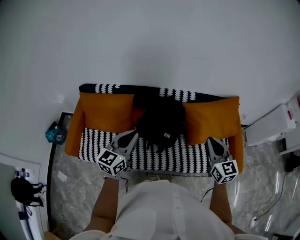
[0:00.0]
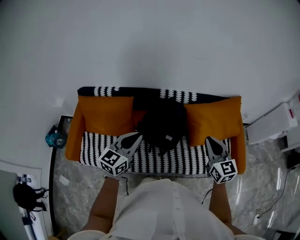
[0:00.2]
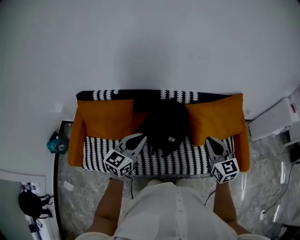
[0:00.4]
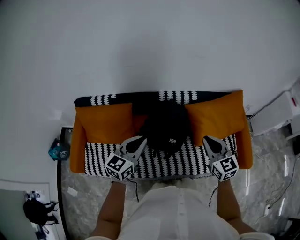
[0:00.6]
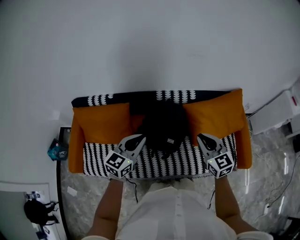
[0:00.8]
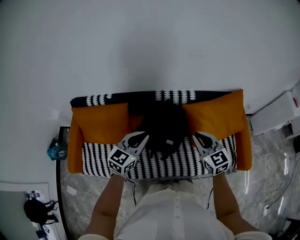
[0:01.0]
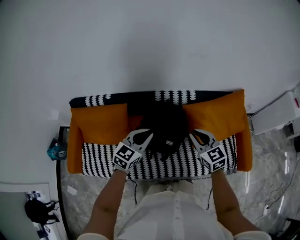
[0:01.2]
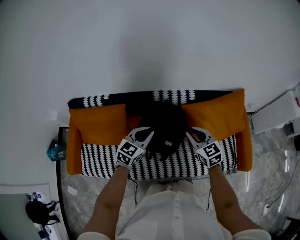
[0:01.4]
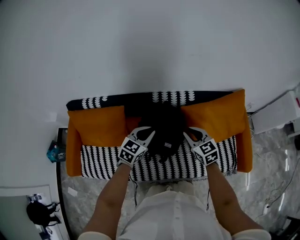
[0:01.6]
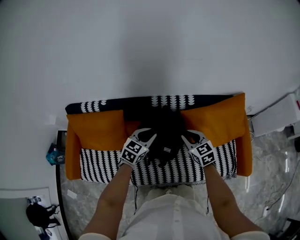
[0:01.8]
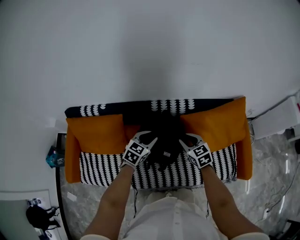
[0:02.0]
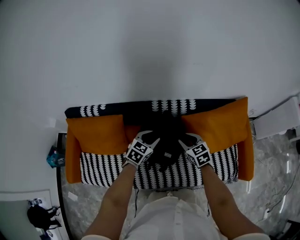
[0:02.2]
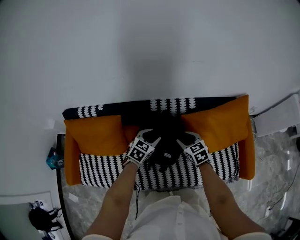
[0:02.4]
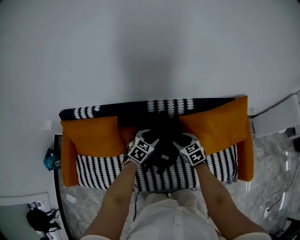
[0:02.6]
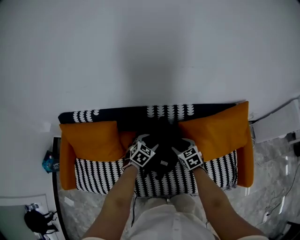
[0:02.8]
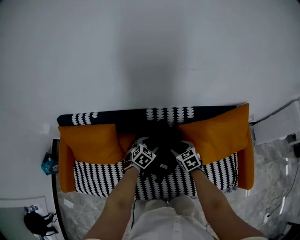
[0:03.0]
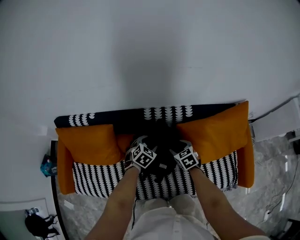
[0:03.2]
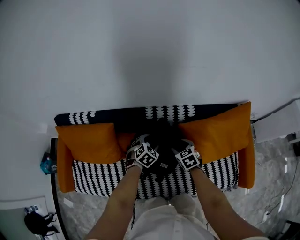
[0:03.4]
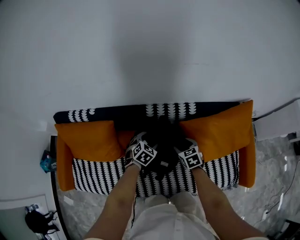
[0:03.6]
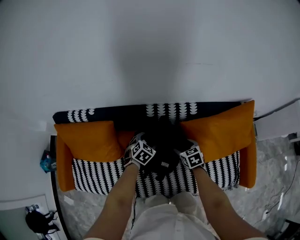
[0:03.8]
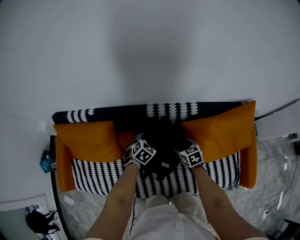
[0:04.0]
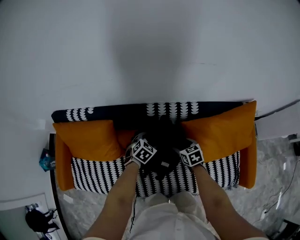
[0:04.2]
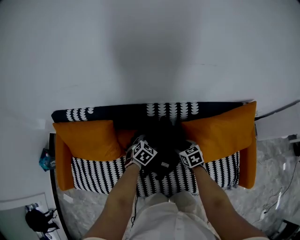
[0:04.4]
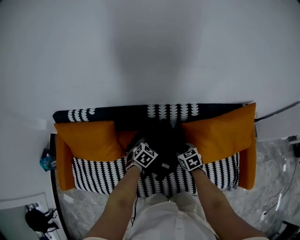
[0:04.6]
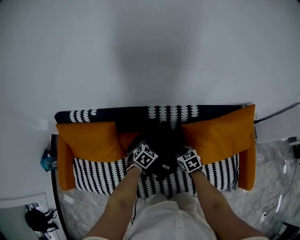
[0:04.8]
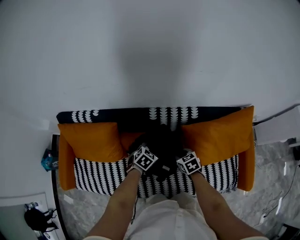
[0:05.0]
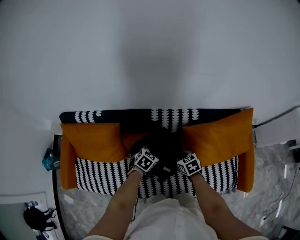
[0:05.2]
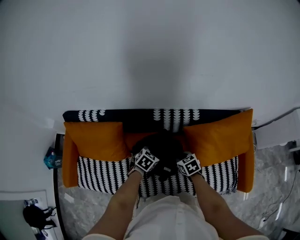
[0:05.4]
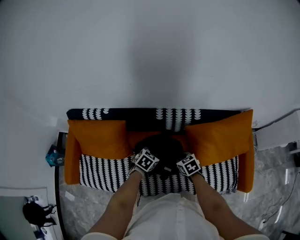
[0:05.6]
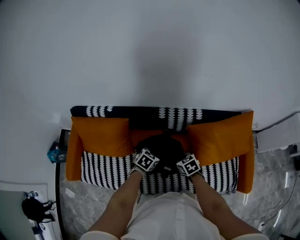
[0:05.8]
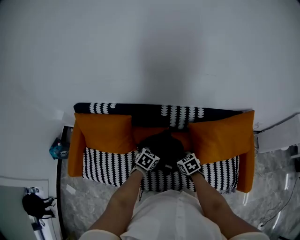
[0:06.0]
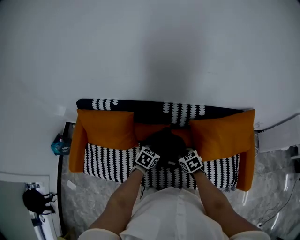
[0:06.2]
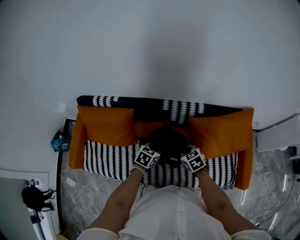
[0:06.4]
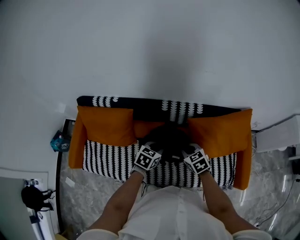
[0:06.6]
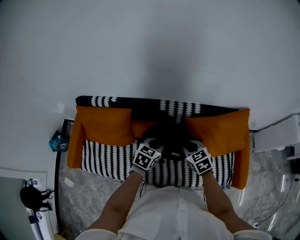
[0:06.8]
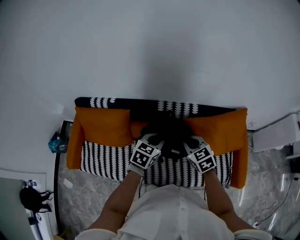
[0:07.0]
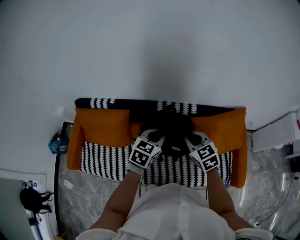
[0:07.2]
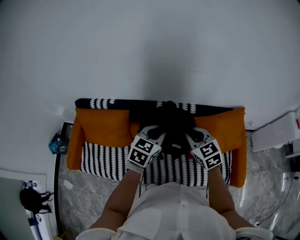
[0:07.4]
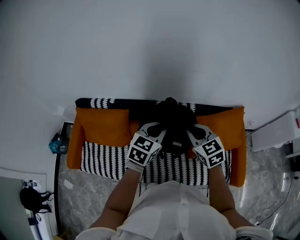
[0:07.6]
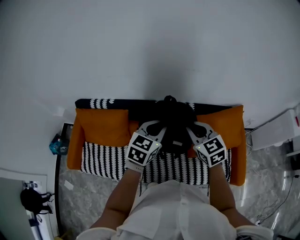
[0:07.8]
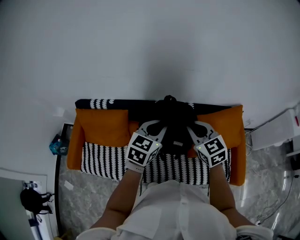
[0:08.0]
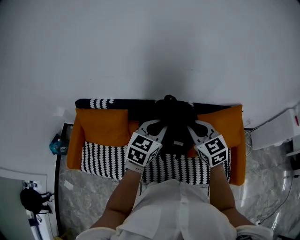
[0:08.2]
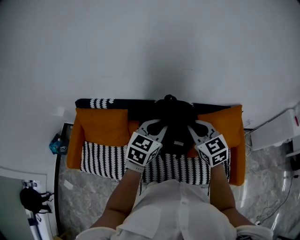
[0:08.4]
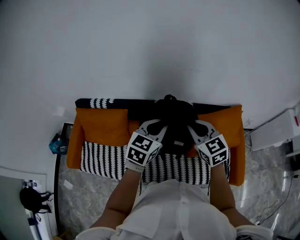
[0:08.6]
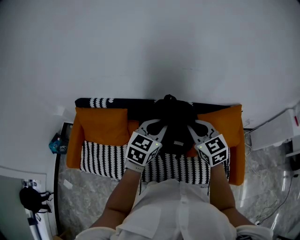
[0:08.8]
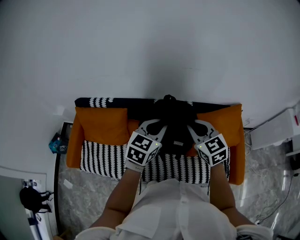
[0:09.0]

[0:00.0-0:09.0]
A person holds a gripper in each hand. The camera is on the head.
0:00.0 to 0:01.6: The left gripper shifts roughly 25 cm forward and downward, and rotates roughly 30 degrees. Meanwhile the right gripper shifts some 25 cm forward, downward and to the left, and rotates some 20 degrees.
0:01.6 to 0:03.0: The grippers both shift downward and forward by roughly 20 cm. The left gripper rotates about 30 degrees, and opens up, while the right gripper opens its fingers.
0:03.0 to 0:04.4: Both grippers move downward, roughly 5 cm.
0:04.4 to 0:06.0: The left gripper travels backward and upward by approximately 15 cm, and closes up. The right gripper is displaced backward, upward and to the left by some 15 cm, and closes its fingers.
0:06.0 to 0:07.6: The grippers both shift upward by some 30 cm. The left gripper rotates approximately 30 degrees; the right gripper swivels some 30 degrees.
0:07.6 to 0:09.0: There are only small adjustments of the grippers.

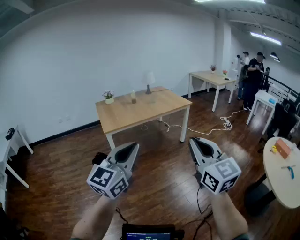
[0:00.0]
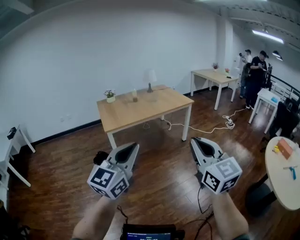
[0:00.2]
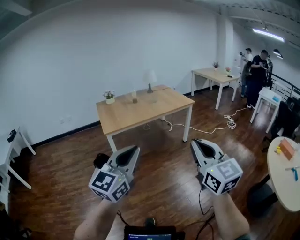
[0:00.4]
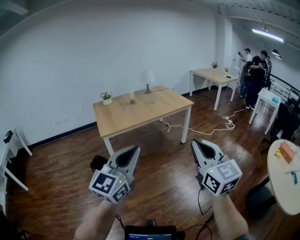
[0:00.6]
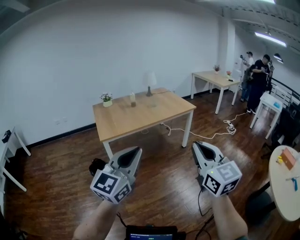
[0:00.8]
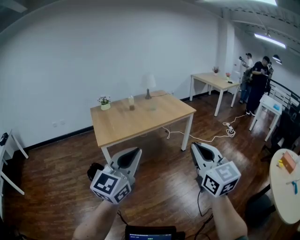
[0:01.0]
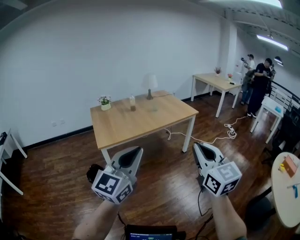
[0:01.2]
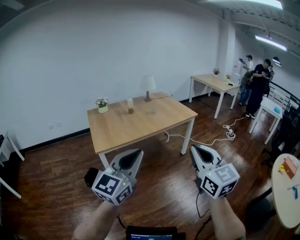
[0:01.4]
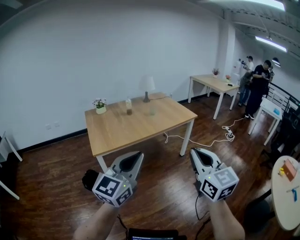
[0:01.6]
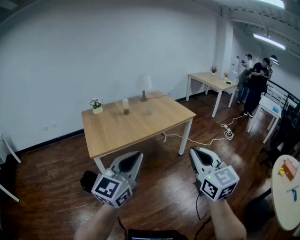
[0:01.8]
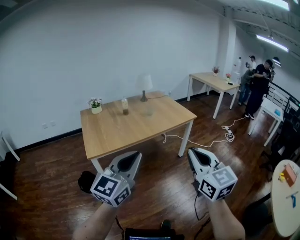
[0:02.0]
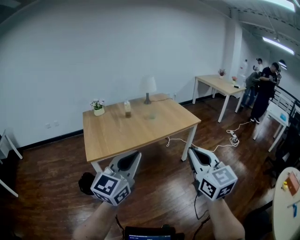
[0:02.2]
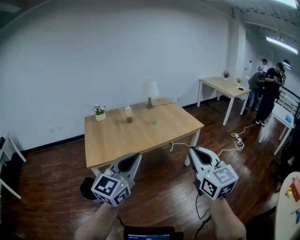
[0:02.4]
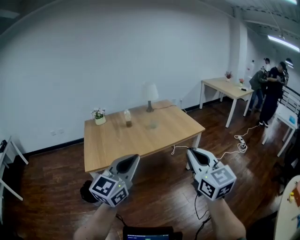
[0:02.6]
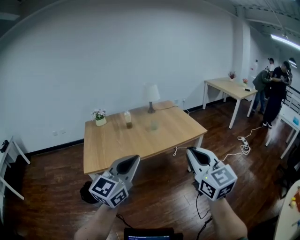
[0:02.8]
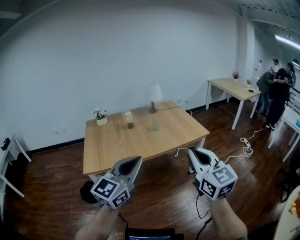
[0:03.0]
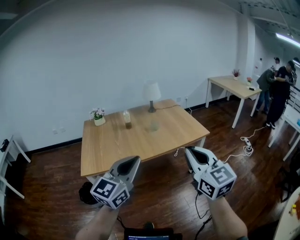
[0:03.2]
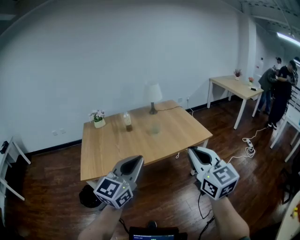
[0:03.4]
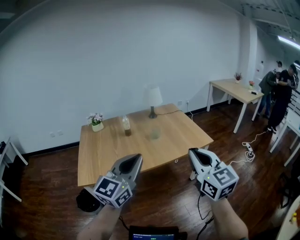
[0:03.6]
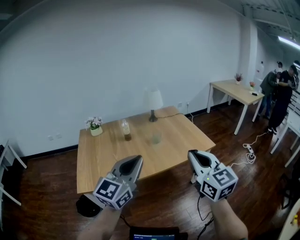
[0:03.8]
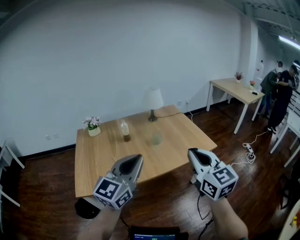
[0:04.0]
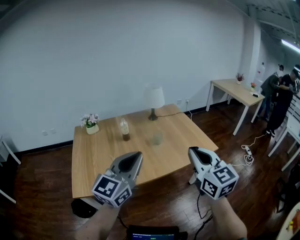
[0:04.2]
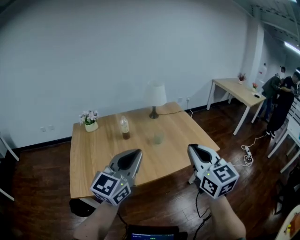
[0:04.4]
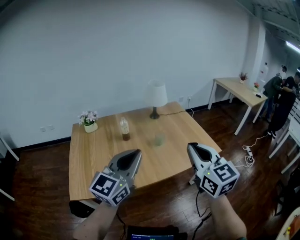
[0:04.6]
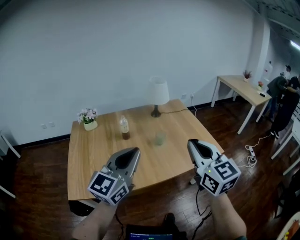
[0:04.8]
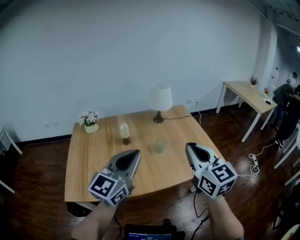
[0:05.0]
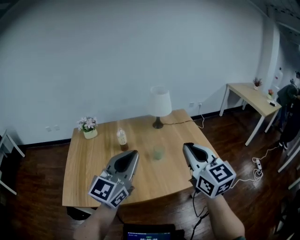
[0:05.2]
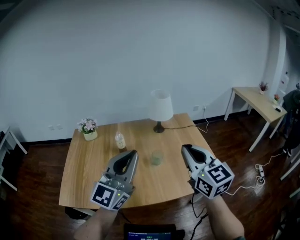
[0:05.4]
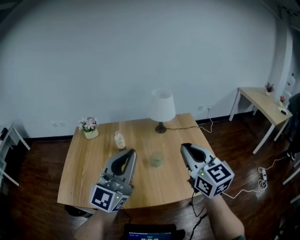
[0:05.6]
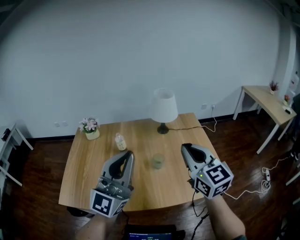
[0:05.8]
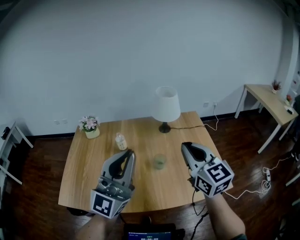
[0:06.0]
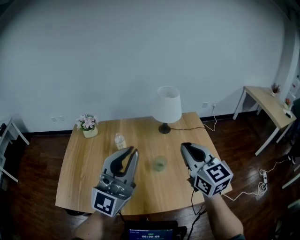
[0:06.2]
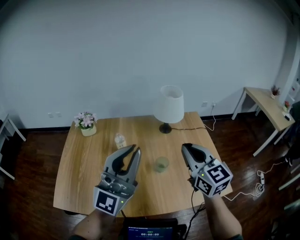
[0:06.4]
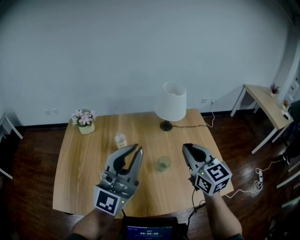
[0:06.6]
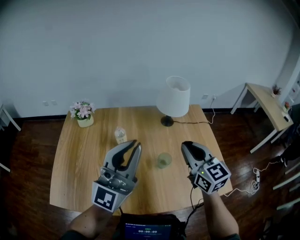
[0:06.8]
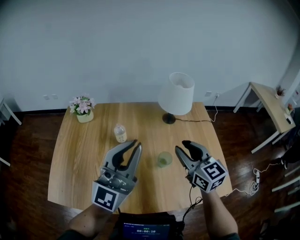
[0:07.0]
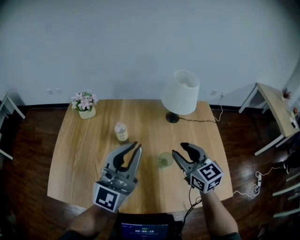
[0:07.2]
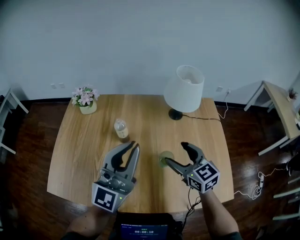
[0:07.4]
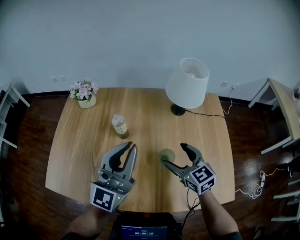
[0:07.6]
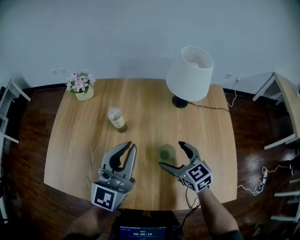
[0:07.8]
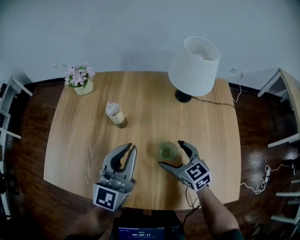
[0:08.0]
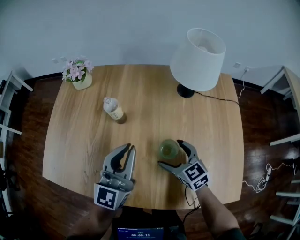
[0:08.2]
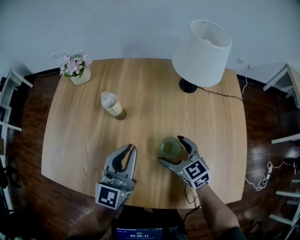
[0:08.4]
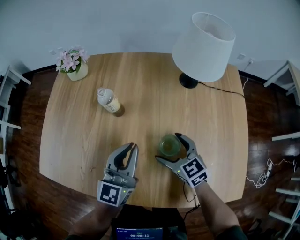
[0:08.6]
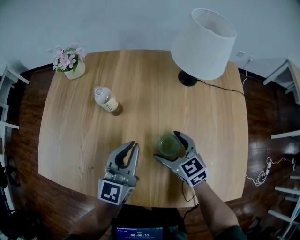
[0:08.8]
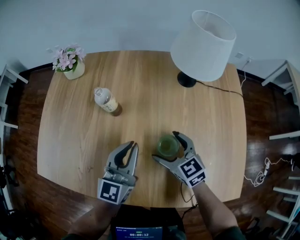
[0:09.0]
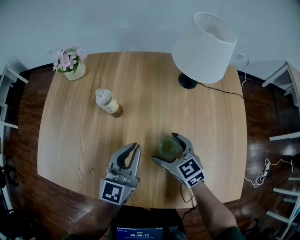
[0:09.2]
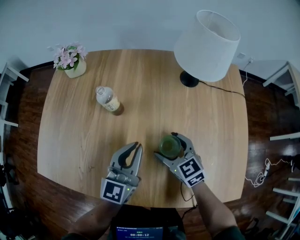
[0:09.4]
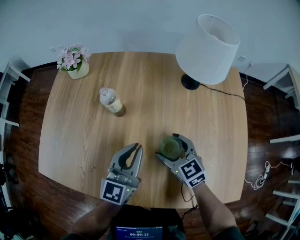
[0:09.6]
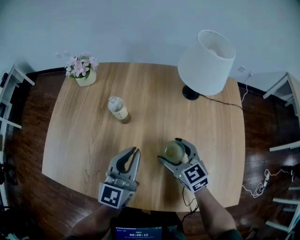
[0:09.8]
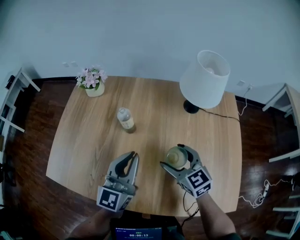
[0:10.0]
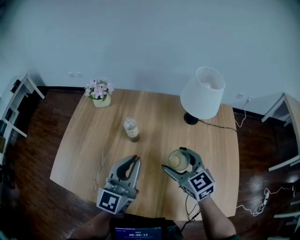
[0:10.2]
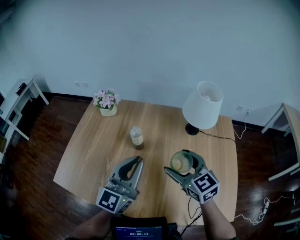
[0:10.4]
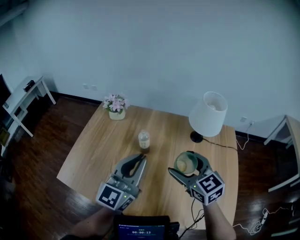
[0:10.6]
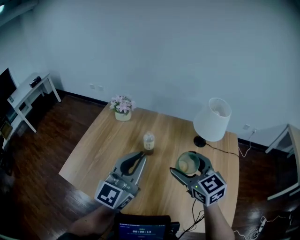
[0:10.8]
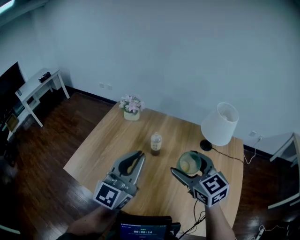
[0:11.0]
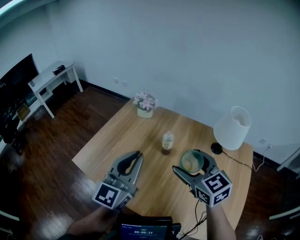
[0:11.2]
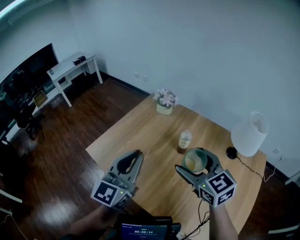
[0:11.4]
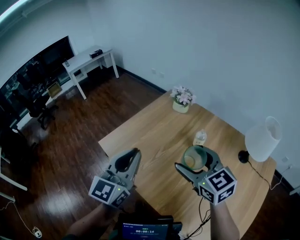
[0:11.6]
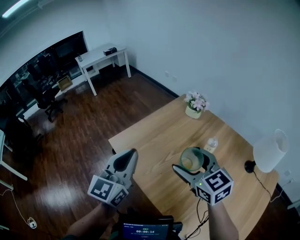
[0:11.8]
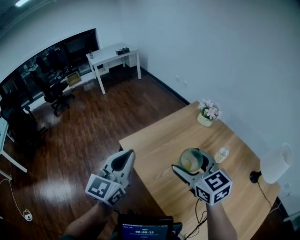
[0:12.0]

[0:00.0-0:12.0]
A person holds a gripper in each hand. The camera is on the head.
0:00.0 to 0:01.6: Both grippers move forward, approximately 30 cm.
0:01.6 to 0:03.0: The left gripper moves forward and to the right, approximately 25 cm; the right gripper travels forward by some 25 cm.
0:03.0 to 0:04.4: Both grippers travel together forward, some 25 cm.
0:04.4 to 0:06.0: The right gripper is displaced forward by about 30 cm. Meanwhile the left gripper heads forward and to the right, covering approximately 20 cm, and rotates some 30 degrees.
0:06.0 to 0:07.6: The right gripper goes about 25 cm downward and forward, swivels about 30 degrees, and opens up. Meanwhile the left gripper shifts about 20 cm forward and downward.
0:07.6 to 0:09.0: The right gripper goes roughly 15 cm downward, while the left gripper goes roughly 20 cm downward, and turns by roughly 30 degrees.
0:09.0 to 0:10.4: Both grippers move upward, about 20 cm.
0:10.4 to 0:12.0: The right gripper ends up some 30 cm from where it was, and swivels roughly 40 degrees, while the left gripper ends up some 35 cm from where it was, and rotates some 50 degrees.

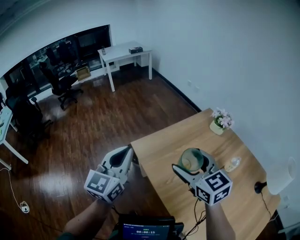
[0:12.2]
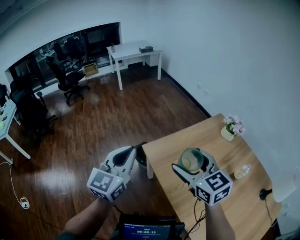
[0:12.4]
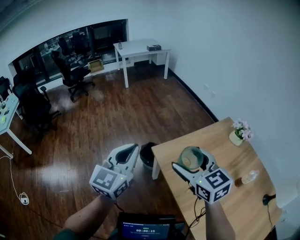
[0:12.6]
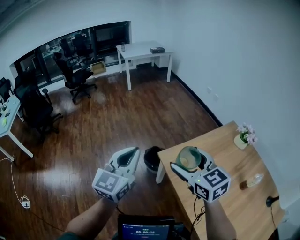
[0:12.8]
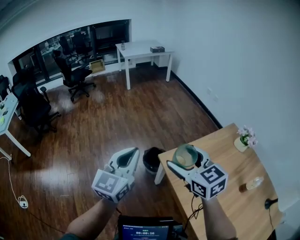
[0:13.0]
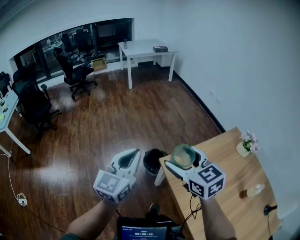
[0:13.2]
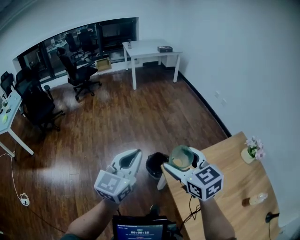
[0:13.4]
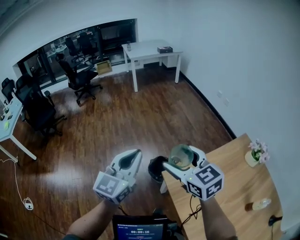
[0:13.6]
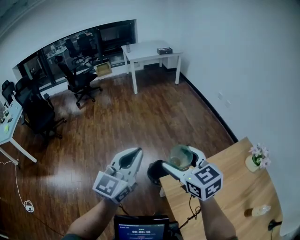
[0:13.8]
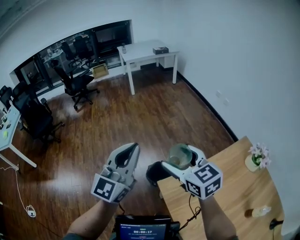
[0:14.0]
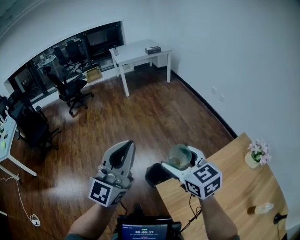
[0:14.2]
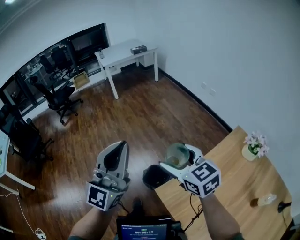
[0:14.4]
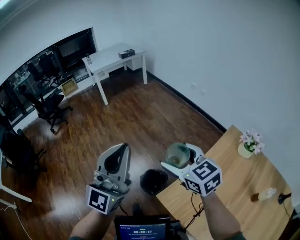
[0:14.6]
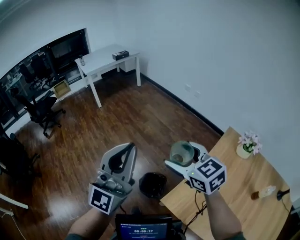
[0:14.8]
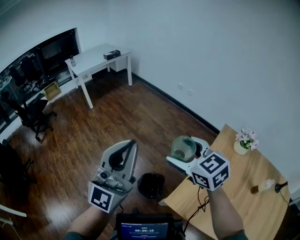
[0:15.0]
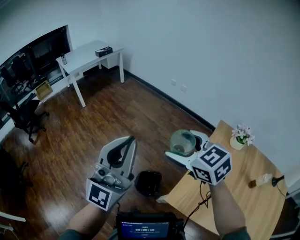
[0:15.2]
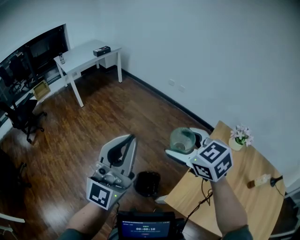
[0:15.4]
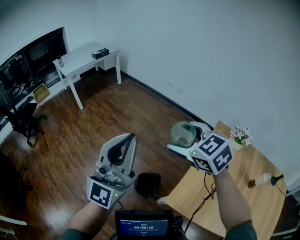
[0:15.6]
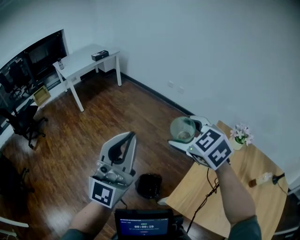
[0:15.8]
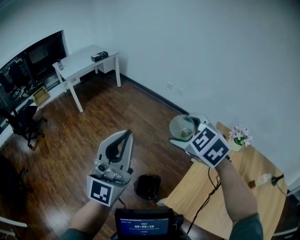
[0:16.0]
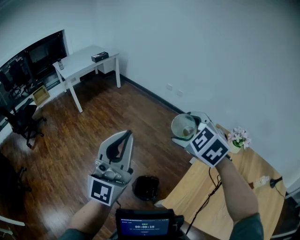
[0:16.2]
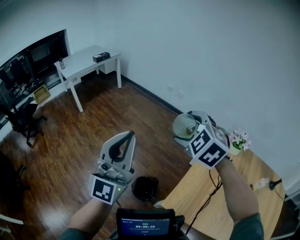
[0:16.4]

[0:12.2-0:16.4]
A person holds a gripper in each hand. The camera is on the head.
0:12.2 to 0:13.6: The two grippers go roughly 30 cm forward and to the left.
0:13.6 to 0:15.0: The left gripper ends up roughly 20 cm from where it was, and tilts its fingers roughly 30 degrees upward. Meanwhile the right gripper ends up about 20 cm from where it was, and changes its angle by about 20 degrees.
0:15.0 to 0:16.4: The right gripper is displaced forward by approximately 10 cm, and swivels approximately 40 degrees. The left gripper goes roughly 5 cm forward.
